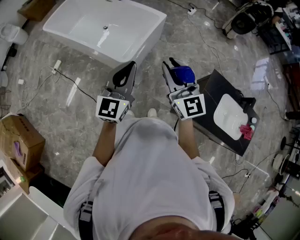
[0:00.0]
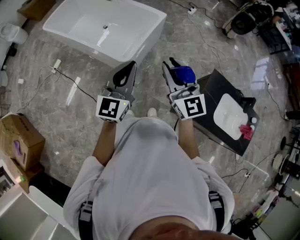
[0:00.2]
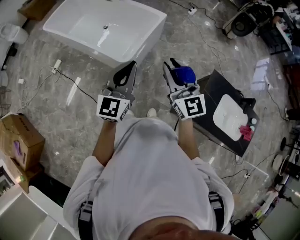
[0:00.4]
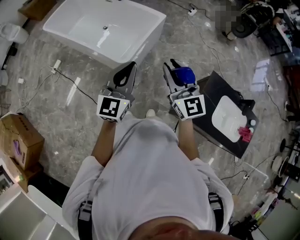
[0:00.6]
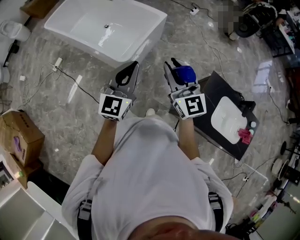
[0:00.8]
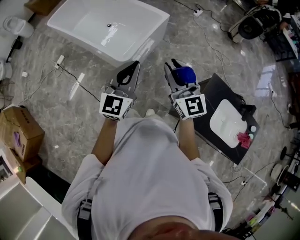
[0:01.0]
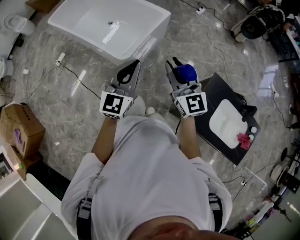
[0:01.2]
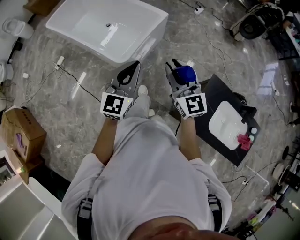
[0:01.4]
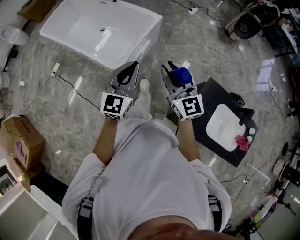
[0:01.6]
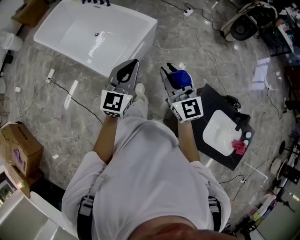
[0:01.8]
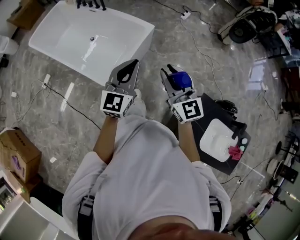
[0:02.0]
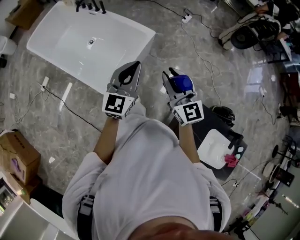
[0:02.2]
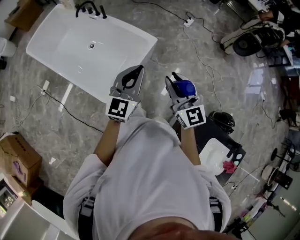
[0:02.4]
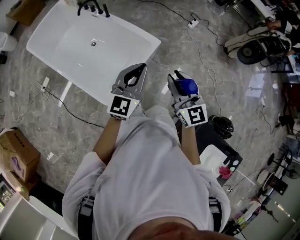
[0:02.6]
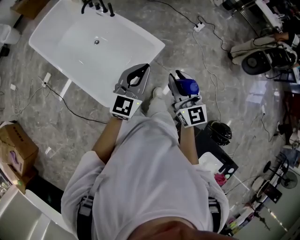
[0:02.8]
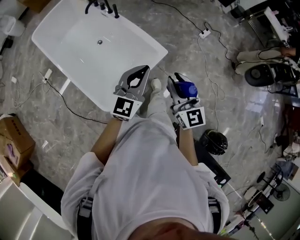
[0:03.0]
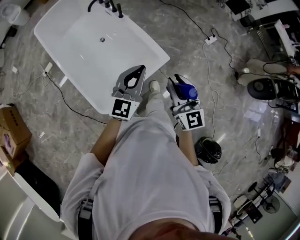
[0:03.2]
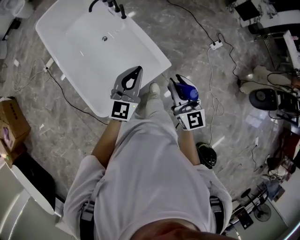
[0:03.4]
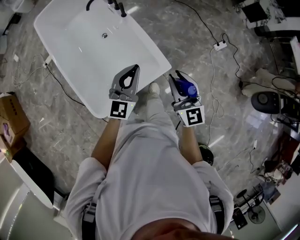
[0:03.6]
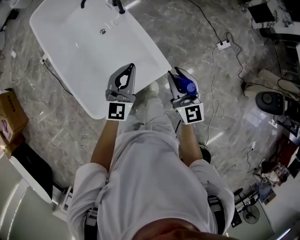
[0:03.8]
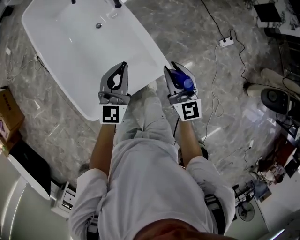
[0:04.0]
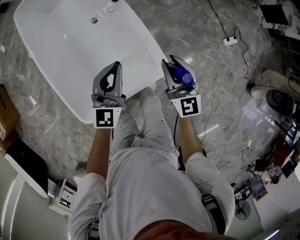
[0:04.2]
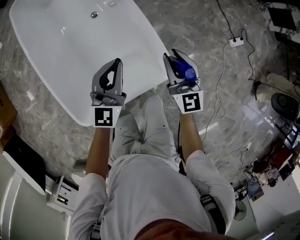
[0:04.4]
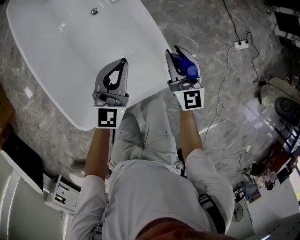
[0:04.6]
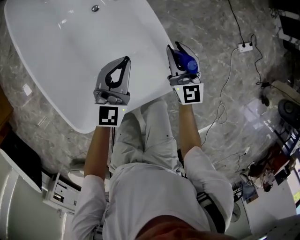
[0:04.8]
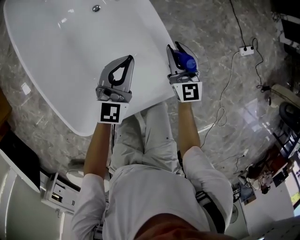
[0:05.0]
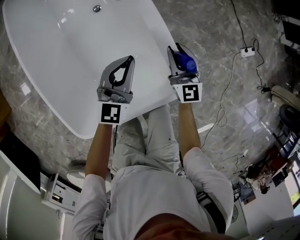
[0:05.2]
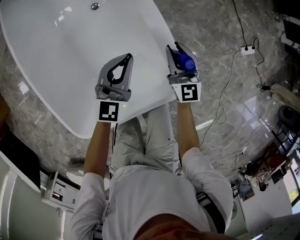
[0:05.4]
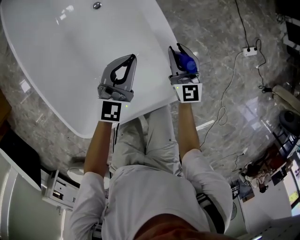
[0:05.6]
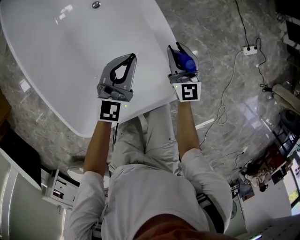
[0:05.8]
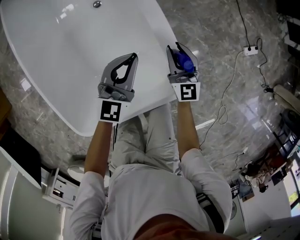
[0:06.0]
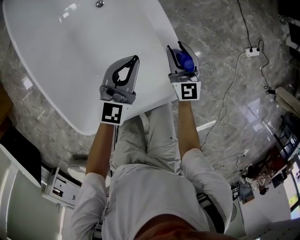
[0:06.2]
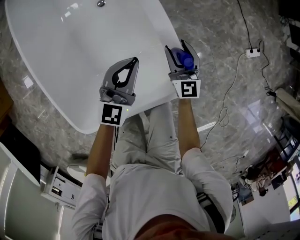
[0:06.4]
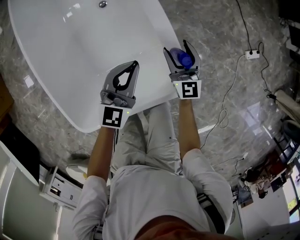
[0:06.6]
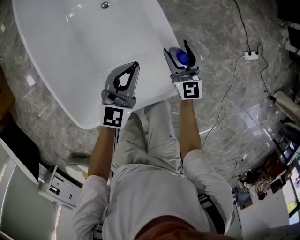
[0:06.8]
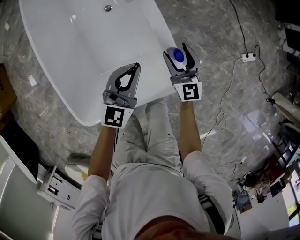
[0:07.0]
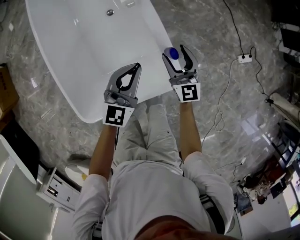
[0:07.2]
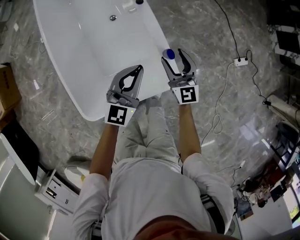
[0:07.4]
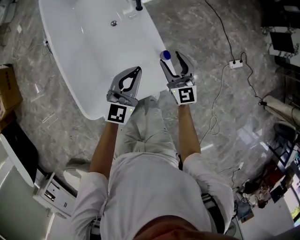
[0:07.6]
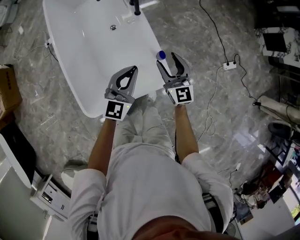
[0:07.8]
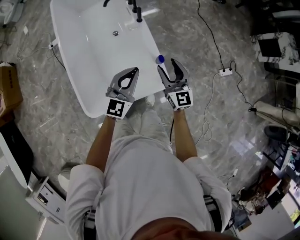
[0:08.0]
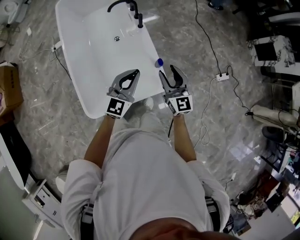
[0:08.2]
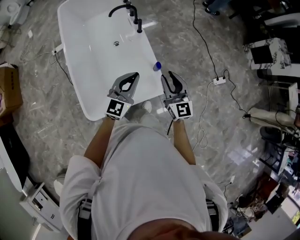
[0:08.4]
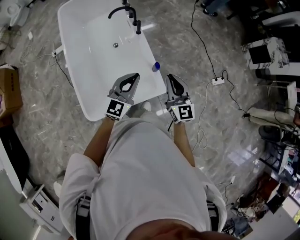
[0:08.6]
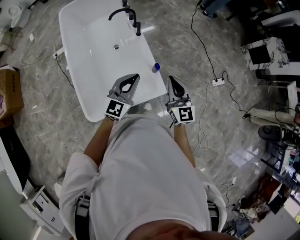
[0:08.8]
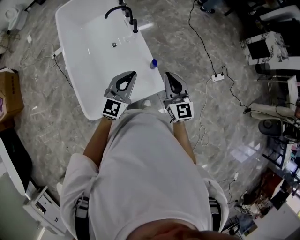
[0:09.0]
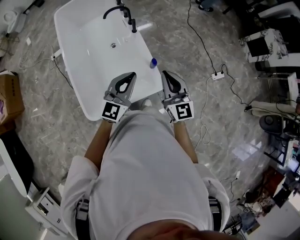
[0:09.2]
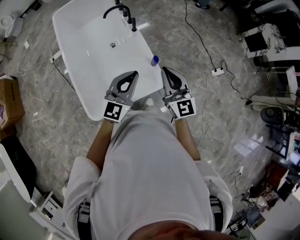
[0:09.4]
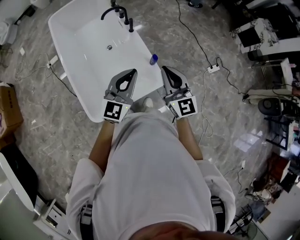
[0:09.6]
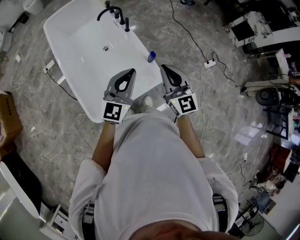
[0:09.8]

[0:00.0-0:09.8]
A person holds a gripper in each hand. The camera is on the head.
0:00.0 to 0:01.4: The two grippers go about 10 cm to the right and forward.
0:01.4 to 0:02.8: Both grippers move forward, roughly 40 cm.
0:02.8 to 0:04.2: The right gripper changes place by roughly 50 cm, and swivels some 20 degrees. The left gripper changes place by roughly 40 cm, and swivels about 30 degrees.
0:04.2 to 0:05.6: The left gripper shifts some 20 cm downward; the right gripper moves downward and forward, roughly 25 cm.
0:05.6 to 0:07.0: Both grippers travel together upward, some 10 cm. The right gripper opens up.
0:07.0 to 0:08.4: The grippers both shift upward by about 30 cm. The right gripper closes.
0:08.4 to 0:09.8: The grippers both shift upward, backward and to the left by approximately 15 cm. The right gripper closes.

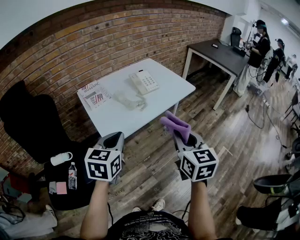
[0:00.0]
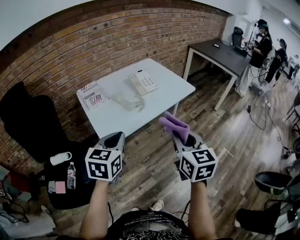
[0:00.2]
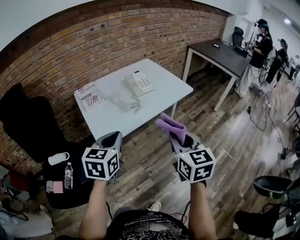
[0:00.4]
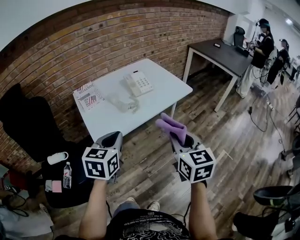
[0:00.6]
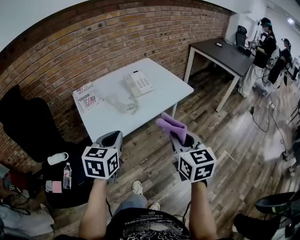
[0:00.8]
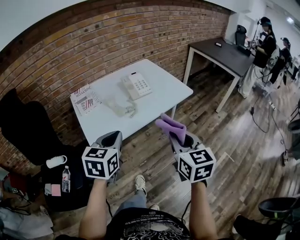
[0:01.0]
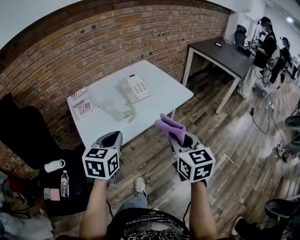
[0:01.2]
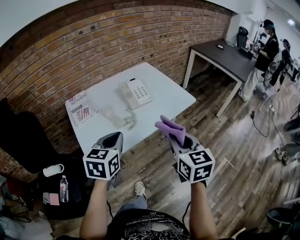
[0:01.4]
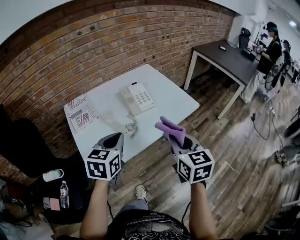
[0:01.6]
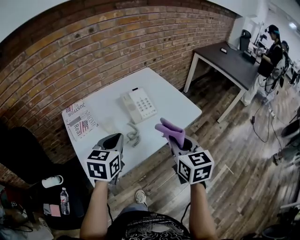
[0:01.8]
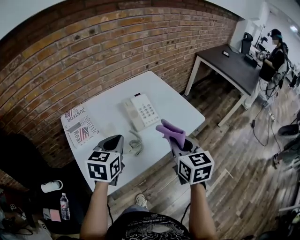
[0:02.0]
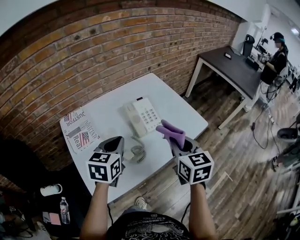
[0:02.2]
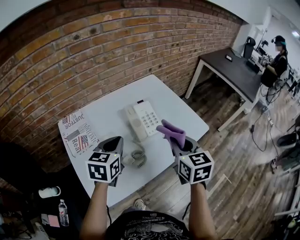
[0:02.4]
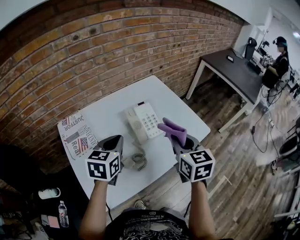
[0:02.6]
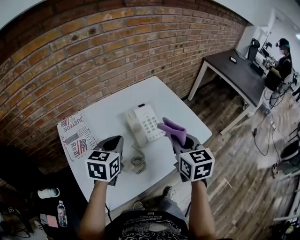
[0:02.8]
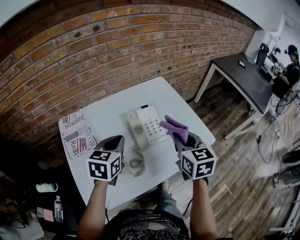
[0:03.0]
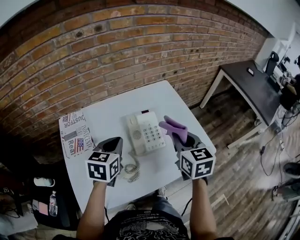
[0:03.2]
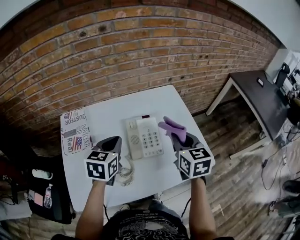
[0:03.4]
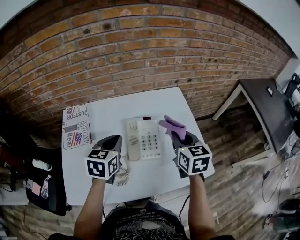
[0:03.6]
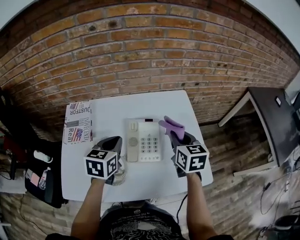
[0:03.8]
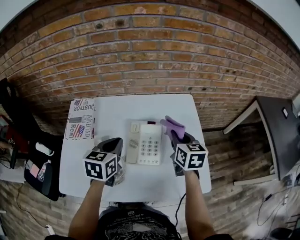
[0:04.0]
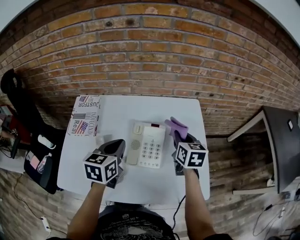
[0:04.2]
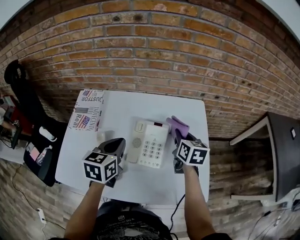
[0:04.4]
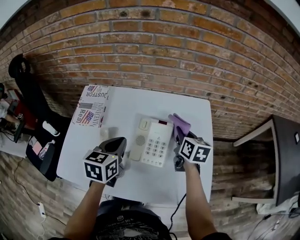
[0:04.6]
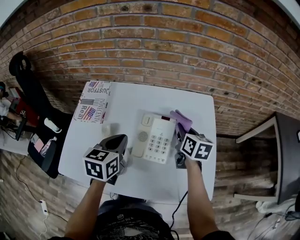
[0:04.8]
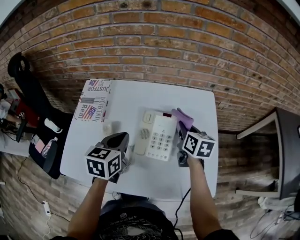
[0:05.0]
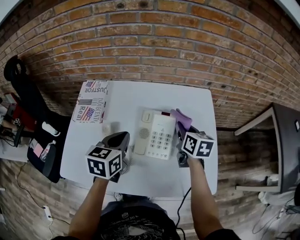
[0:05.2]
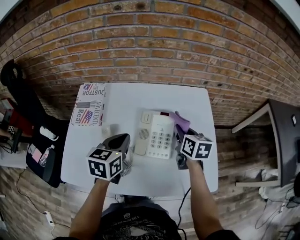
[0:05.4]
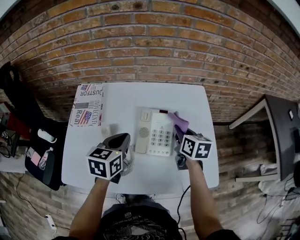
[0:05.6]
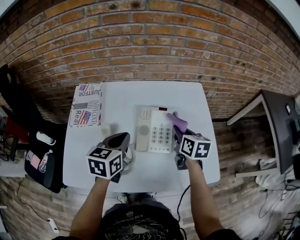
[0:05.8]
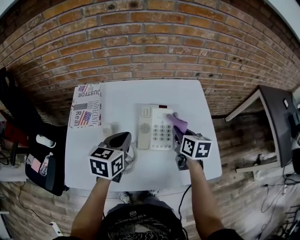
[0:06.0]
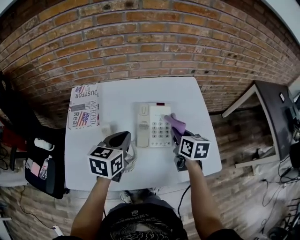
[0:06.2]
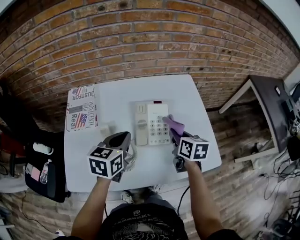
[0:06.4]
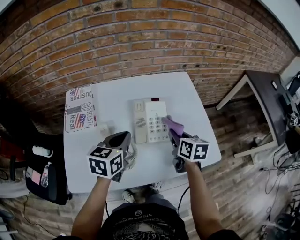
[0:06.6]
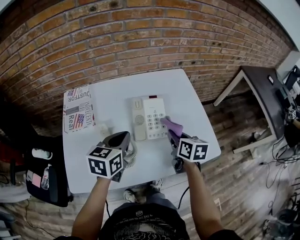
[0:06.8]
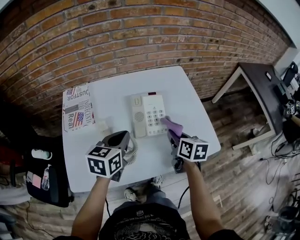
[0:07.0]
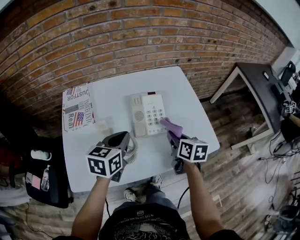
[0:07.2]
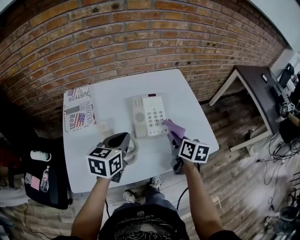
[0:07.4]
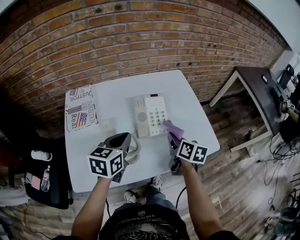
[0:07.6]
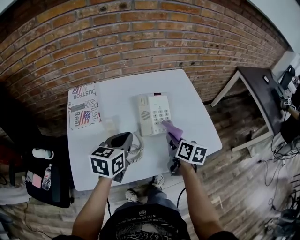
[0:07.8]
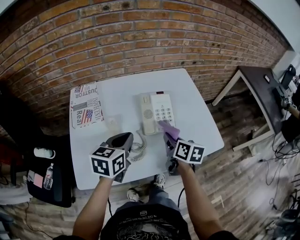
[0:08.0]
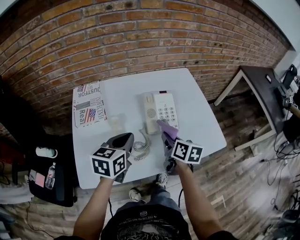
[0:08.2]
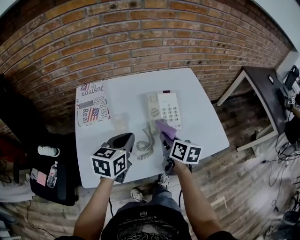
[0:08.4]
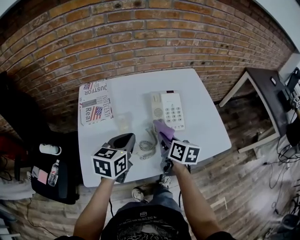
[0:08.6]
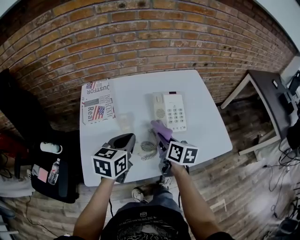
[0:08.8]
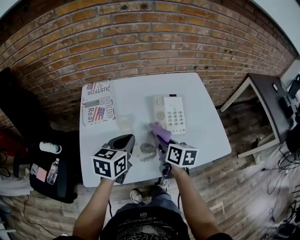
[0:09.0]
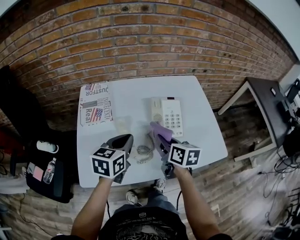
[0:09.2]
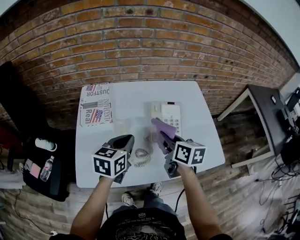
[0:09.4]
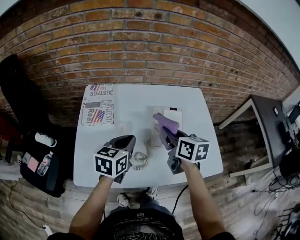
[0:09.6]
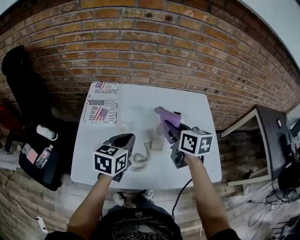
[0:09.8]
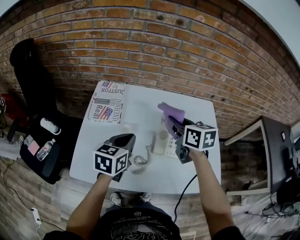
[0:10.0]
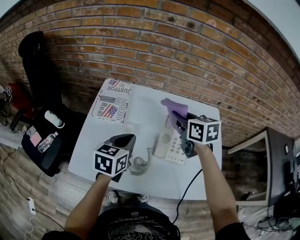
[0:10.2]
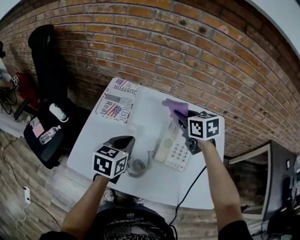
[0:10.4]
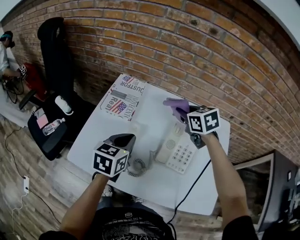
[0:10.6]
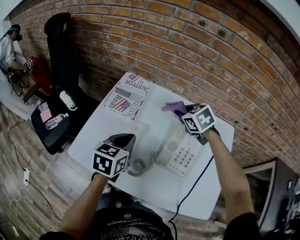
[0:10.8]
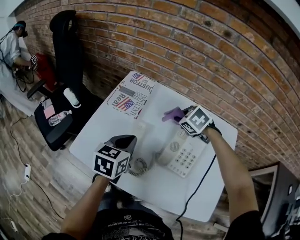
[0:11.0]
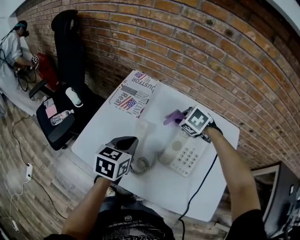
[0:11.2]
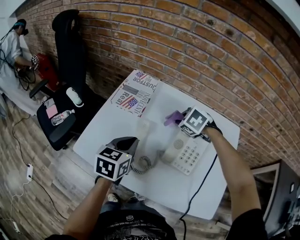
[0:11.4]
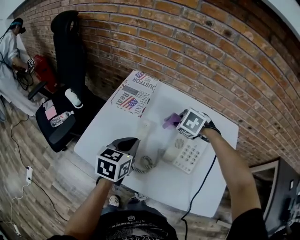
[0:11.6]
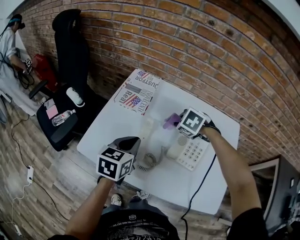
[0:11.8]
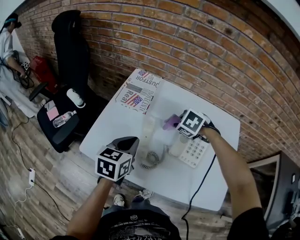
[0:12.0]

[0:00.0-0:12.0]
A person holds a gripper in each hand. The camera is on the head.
0:00.0 to 0:01.6: The grippers both shift forward by approximately 20 cm.
0:01.6 to 0:03.0: Both grippers move forward, approximately 25 cm.
0:03.0 to 0:04.4: The left gripper changes place by approximately 5 cm, and swivels about 30 degrees; the right gripper moves some 25 cm, and swivels some 30 degrees.
0:04.4 to 0:06.0: The right gripper moves backward, approximately 10 cm.
0:06.0 to 0:07.6: The left gripper is displaced backward by approximately 5 cm; the right gripper heads backward, covering roughly 10 cm, and swivels roughly 20 degrees.
0:07.6 to 0:09.0: The right gripper is displaced to the left by approximately 15 cm. The left gripper goes about 5 cm to the left.
0:09.0 to 0:10.4: The left gripper changes its angle by roughly 20 degrees; the right gripper shifts approximately 25 cm forward and upward, and rotates around the line of its fingers by some 40 degrees, counterclockwise from behind.
0:10.4 to 0:12.0: The left gripper travels to the left by approximately 5 cm, while the right gripper travels downward and to the left by about 15 cm, and points its fingers some 40 degrees further downward.

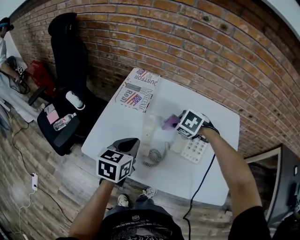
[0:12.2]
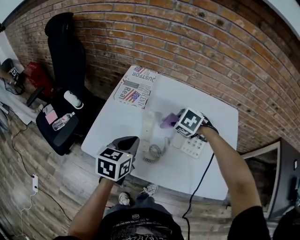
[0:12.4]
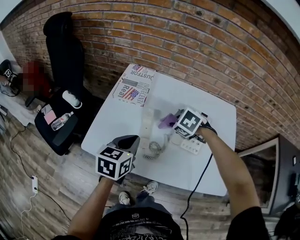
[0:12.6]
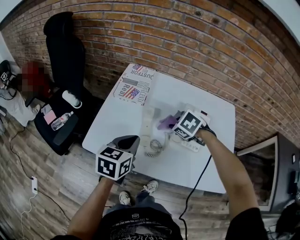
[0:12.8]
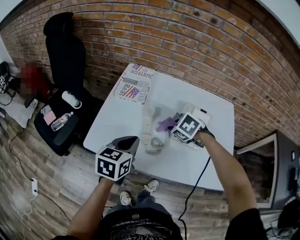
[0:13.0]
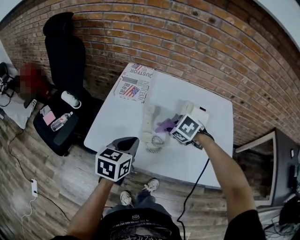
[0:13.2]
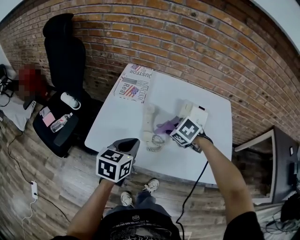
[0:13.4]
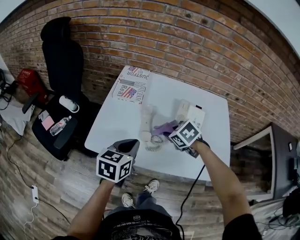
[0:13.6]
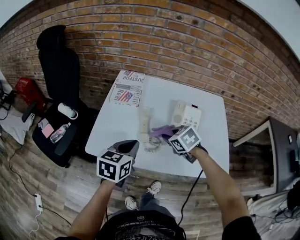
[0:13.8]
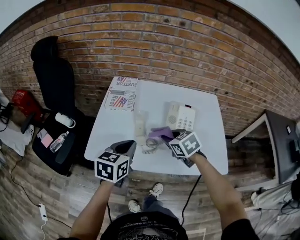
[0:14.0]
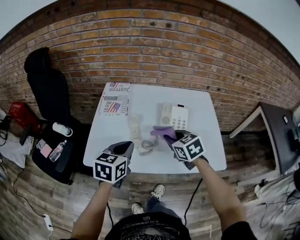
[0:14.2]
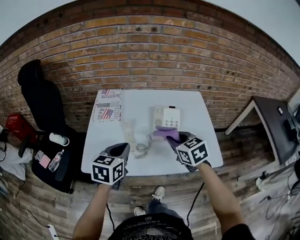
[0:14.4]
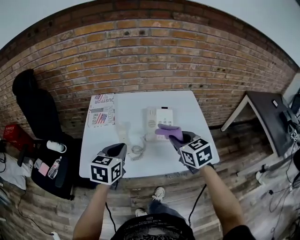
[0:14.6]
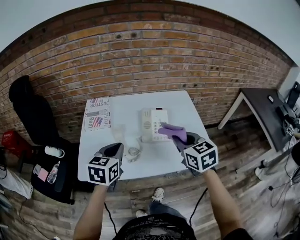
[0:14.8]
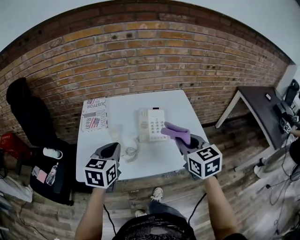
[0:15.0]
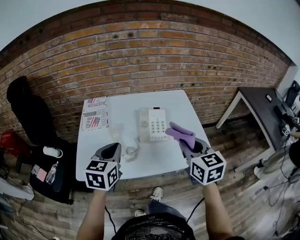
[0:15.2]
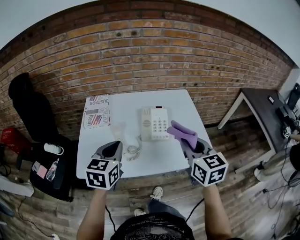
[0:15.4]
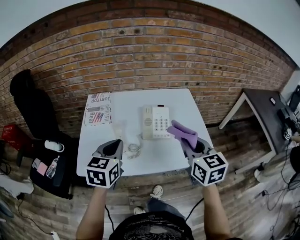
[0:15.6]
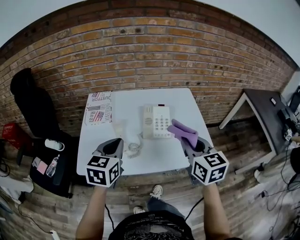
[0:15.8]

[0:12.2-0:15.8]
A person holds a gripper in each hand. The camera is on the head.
0:12.2 to 0:14.0: The right gripper travels backward by about 15 cm, and swivels some 40 degrees, while the left gripper travels backward by approximately 5 cm.
0:14.0 to 0:15.8: The left gripper shifts about 5 cm upward. Meanwhile the right gripper is displaced to the right, upward and backward by roughly 25 cm, and angles its fingers upward, by approximately 30 degrees.
